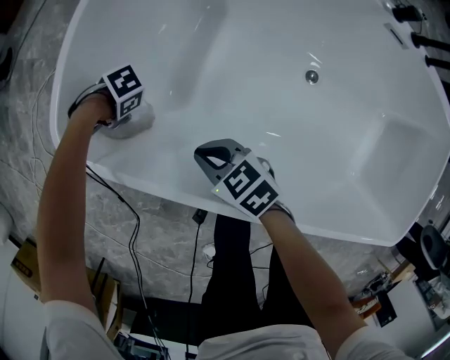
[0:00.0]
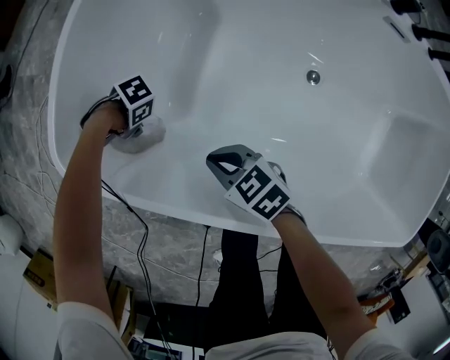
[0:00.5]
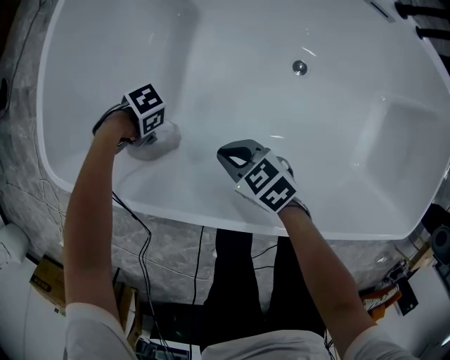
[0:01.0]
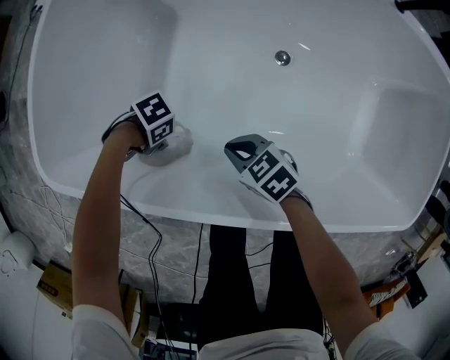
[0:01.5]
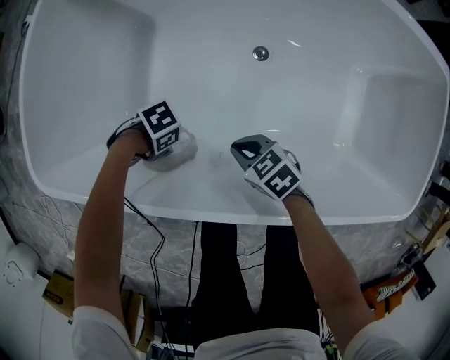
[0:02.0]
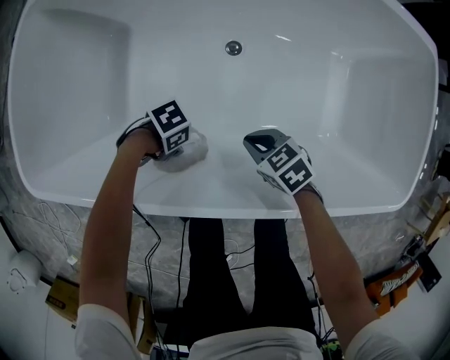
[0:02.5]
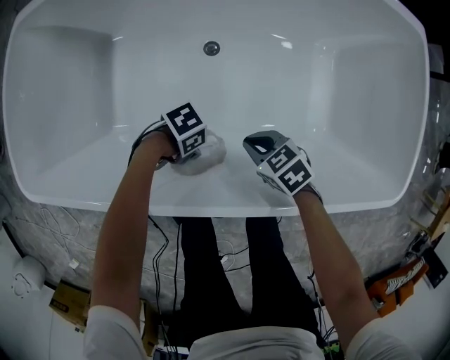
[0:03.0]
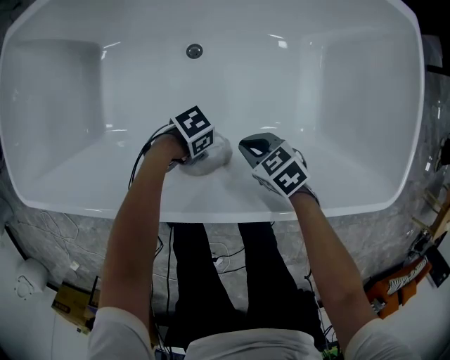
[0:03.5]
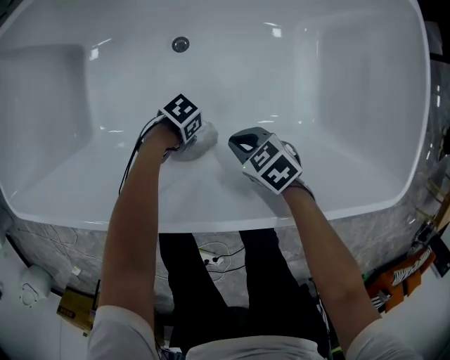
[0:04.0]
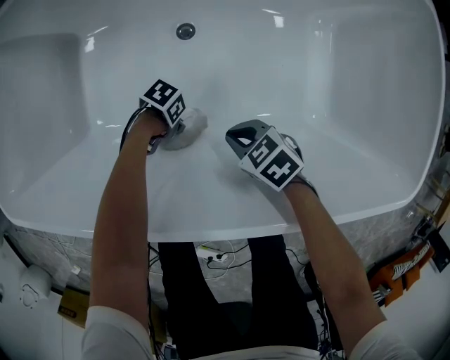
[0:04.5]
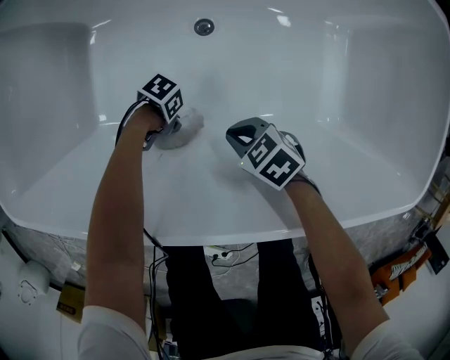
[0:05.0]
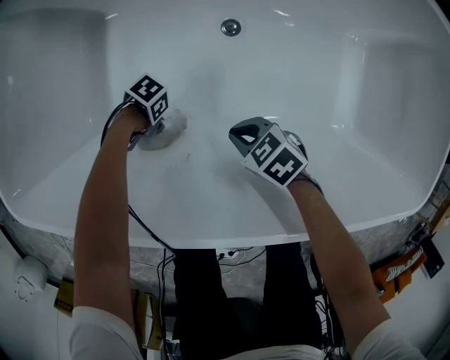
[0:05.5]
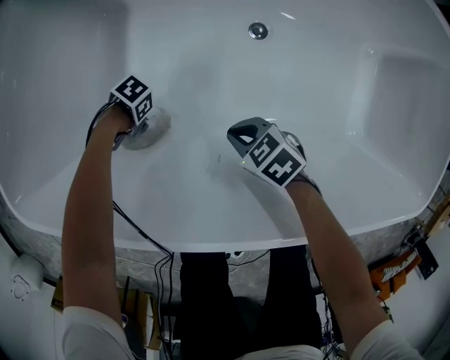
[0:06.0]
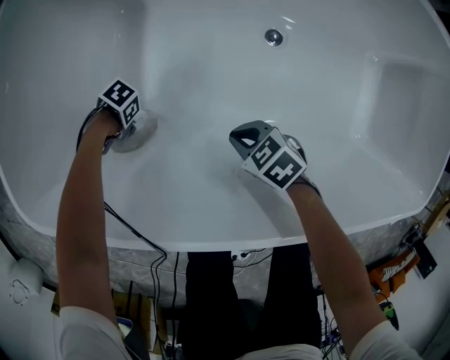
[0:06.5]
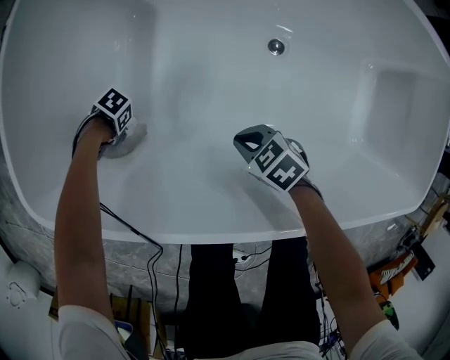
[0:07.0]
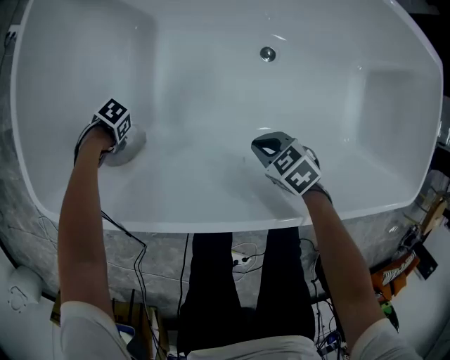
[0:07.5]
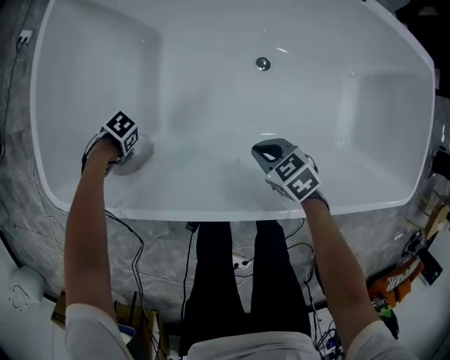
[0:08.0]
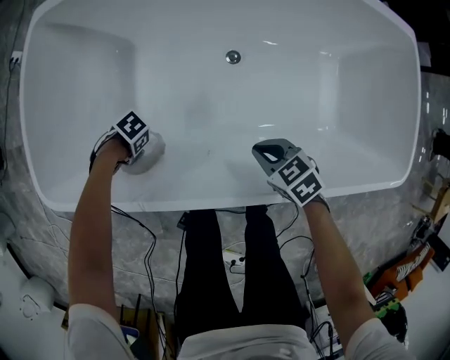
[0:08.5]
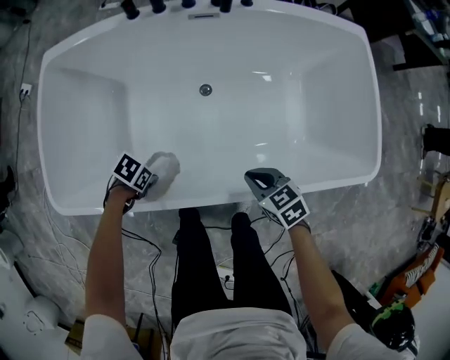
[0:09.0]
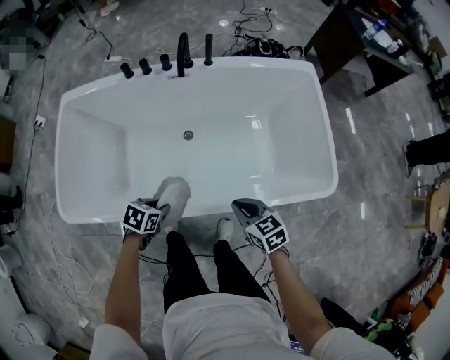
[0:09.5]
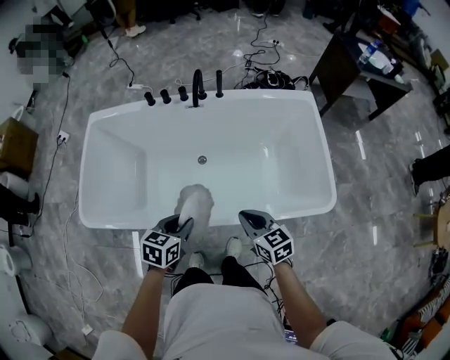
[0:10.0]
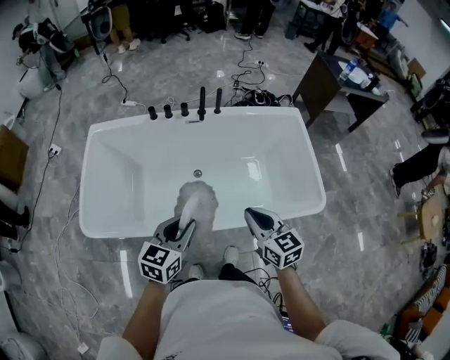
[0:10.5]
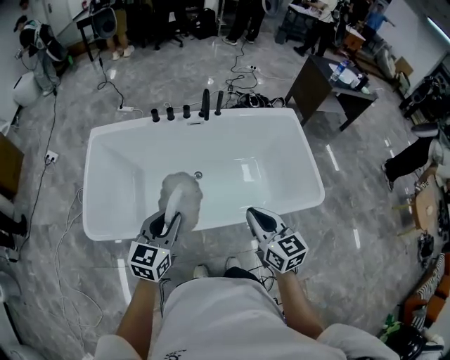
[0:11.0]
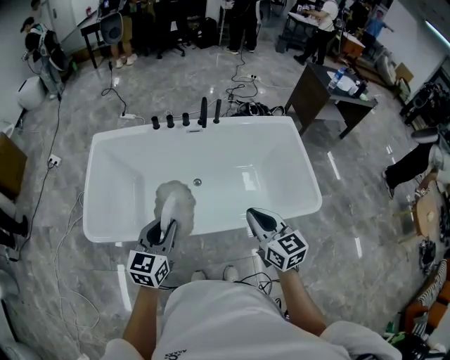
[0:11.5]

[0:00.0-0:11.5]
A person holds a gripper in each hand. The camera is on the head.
0:00.0 to 0:02.0: The right gripper moves roughly 25 cm.
0:02.0 to 0:04.0: The right gripper shifts by roughly 25 cm.
0:04.0 to 0:06.0: The right gripper changes place by approximately 25 cm.
0:06.0 to 0:07.5: The right gripper goes some 5 cm upward.
0:07.5 to 0:09.5: The right gripper shifts approximately 30 cm upward, and turns by approximately 40 degrees.
0:09.5 to 0:11.5: The right gripper is displaced upward by approximately 25 cm, and turns by some 30 degrees.

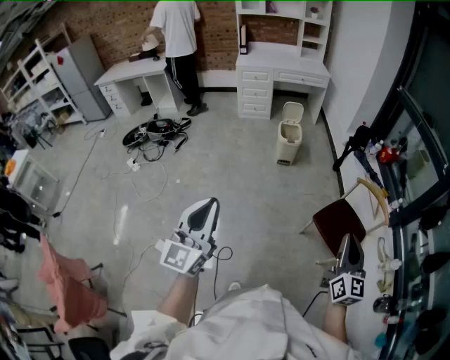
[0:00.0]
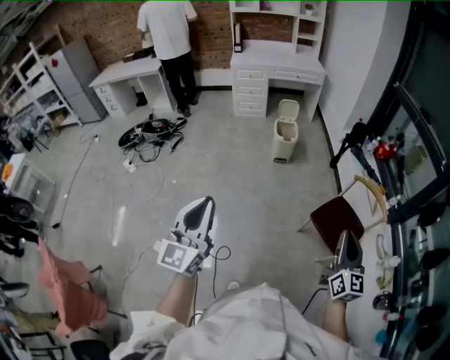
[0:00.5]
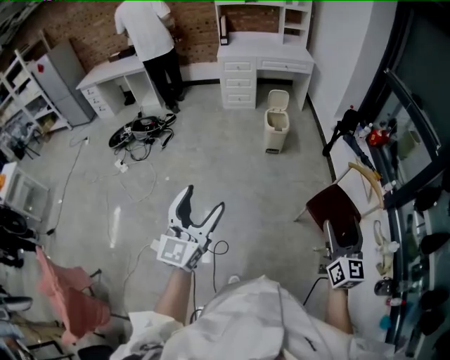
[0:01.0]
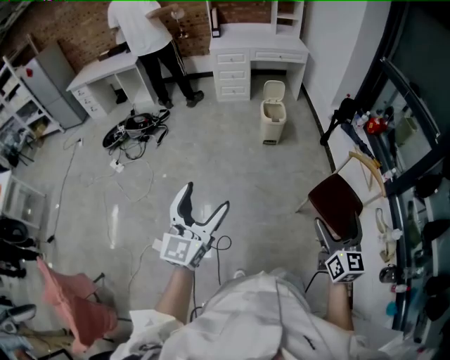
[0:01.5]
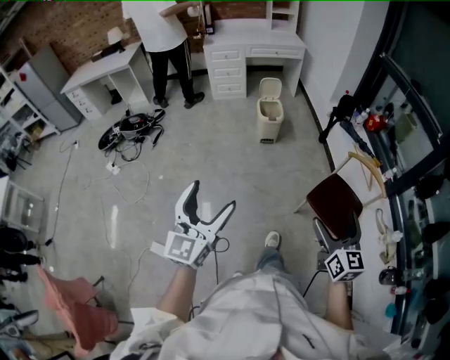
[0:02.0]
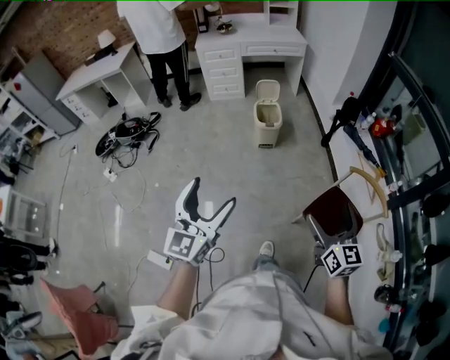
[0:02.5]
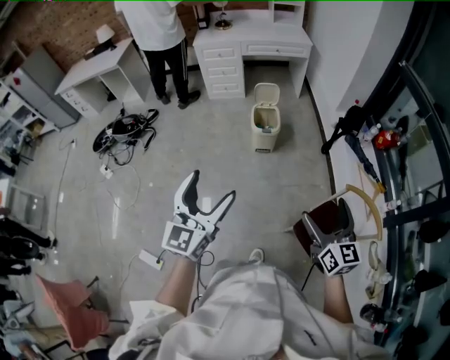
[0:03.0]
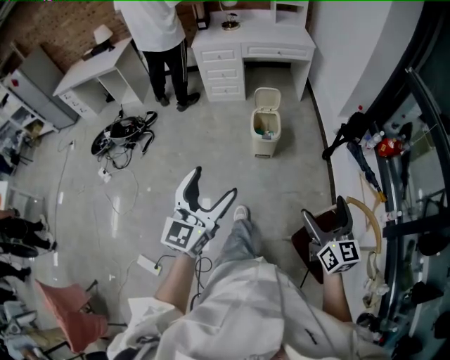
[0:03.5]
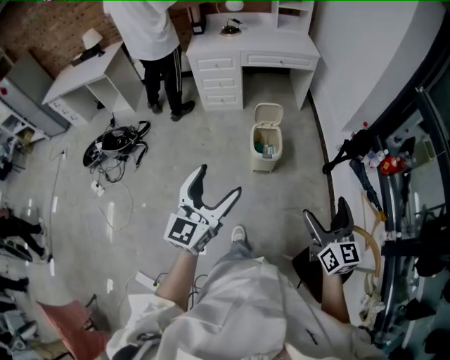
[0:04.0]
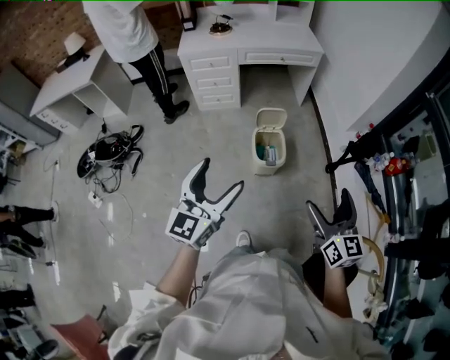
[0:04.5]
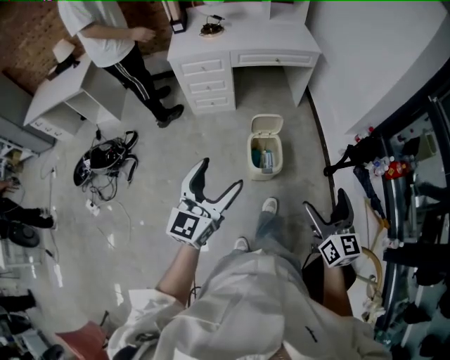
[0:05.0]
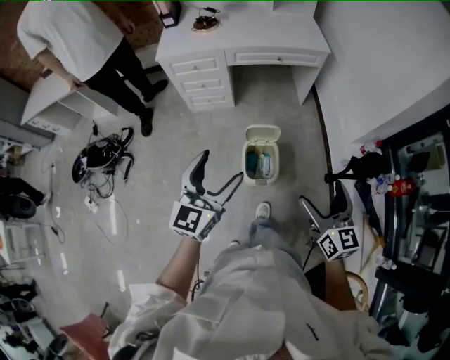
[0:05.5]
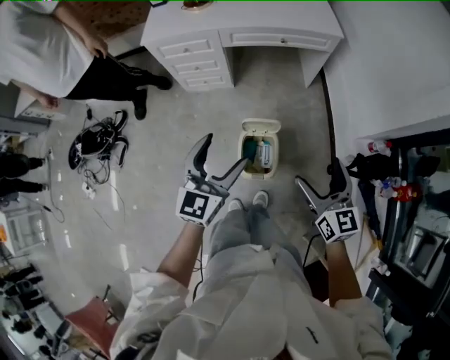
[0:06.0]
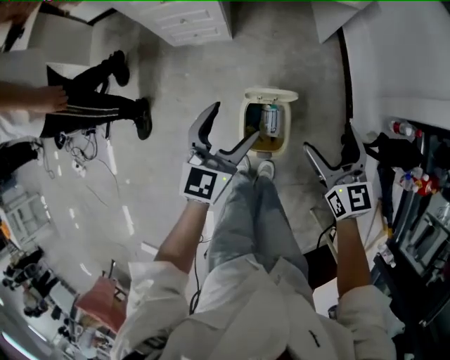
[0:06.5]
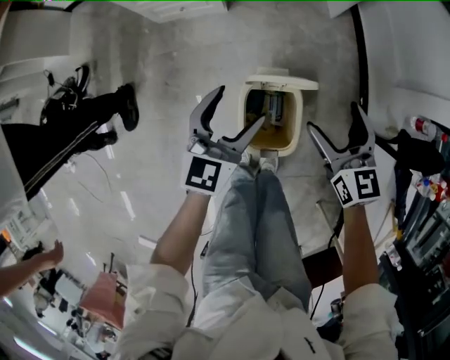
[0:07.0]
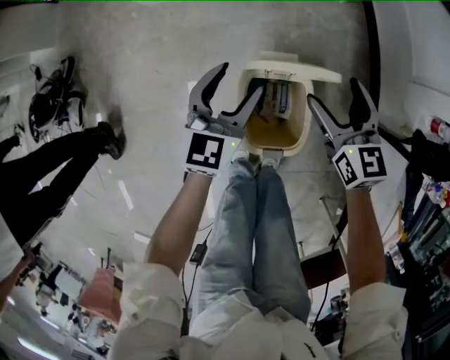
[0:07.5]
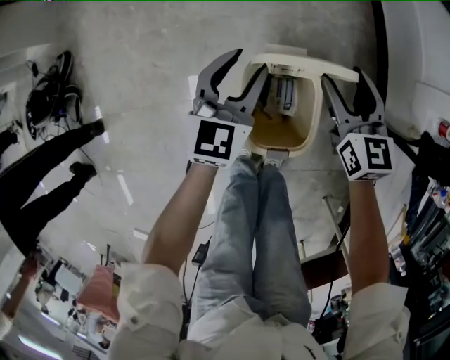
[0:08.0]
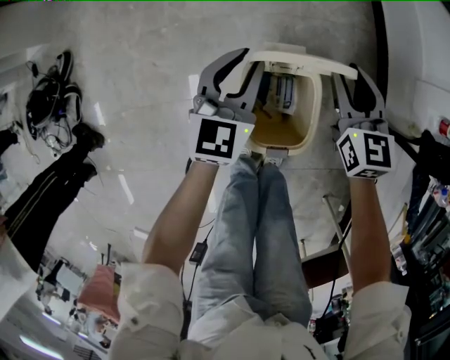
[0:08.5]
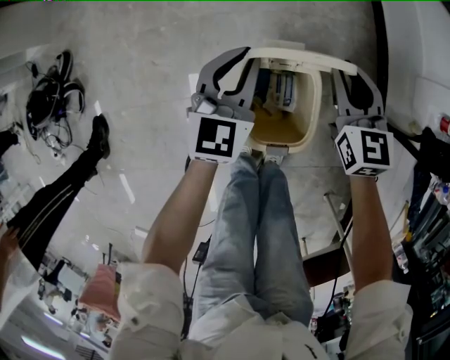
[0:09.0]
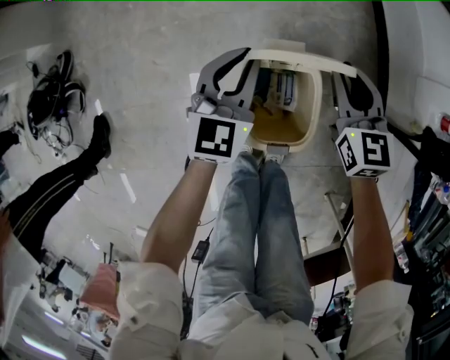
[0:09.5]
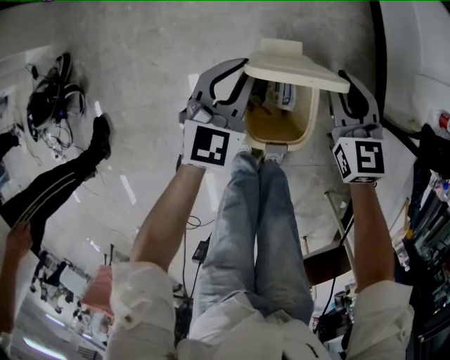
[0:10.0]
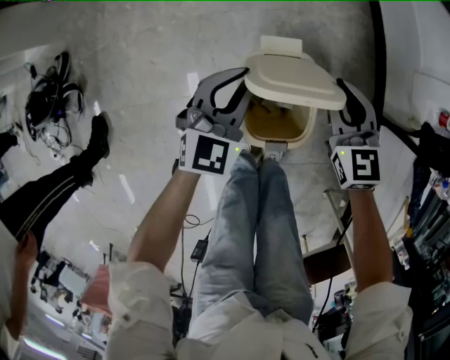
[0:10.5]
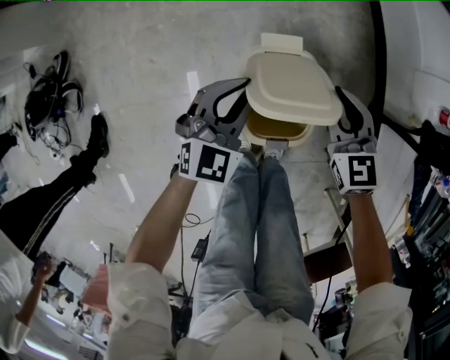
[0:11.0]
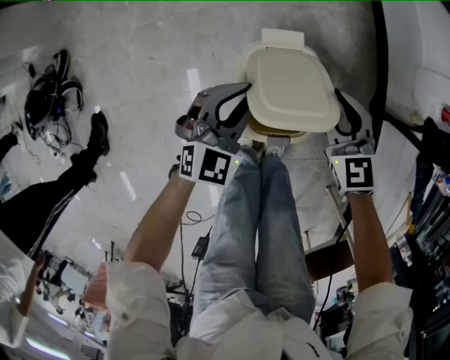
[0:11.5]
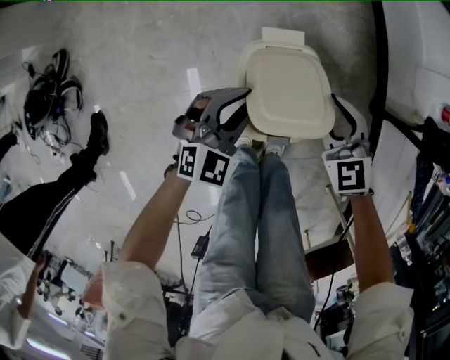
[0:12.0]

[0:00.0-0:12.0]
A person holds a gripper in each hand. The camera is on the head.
0:00.0 to 0:02.0: The left gripper shifts some 10 cm forward, and opens its fingers; the right gripper is displaced forward, to the left and downward by roughly 10 cm, and opens.
0:02.0 to 0:04.0: Both grippers are carried forward, about 60 cm.
0:04.0 to 0:06.0: The two grippers travel together, forward, about 60 cm.
0:06.0 to 0:08.0: The left gripper goes about 50 cm downward, and closes up. The right gripper travels downward and forward by approximately 50 cm, and closes its fingers.
0:08.0 to 0:10.0: The right gripper closes up.
0:10.0 to 0:12.0: The grippers both shift backward by approximately 10 cm. The left gripper swivels some 20 degrees.

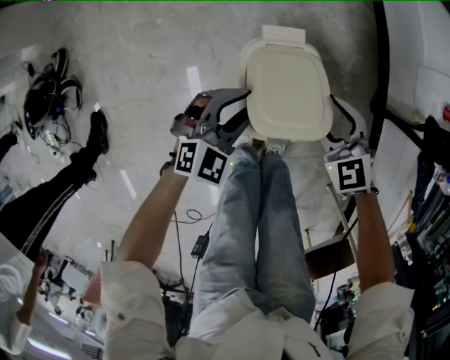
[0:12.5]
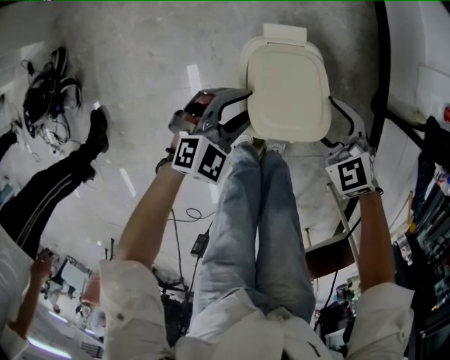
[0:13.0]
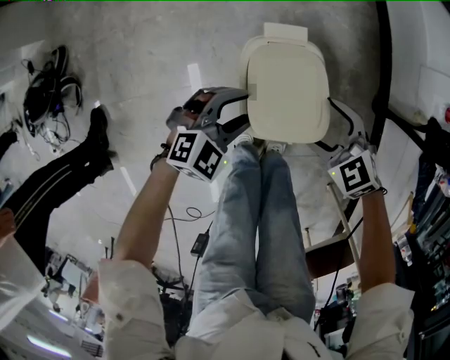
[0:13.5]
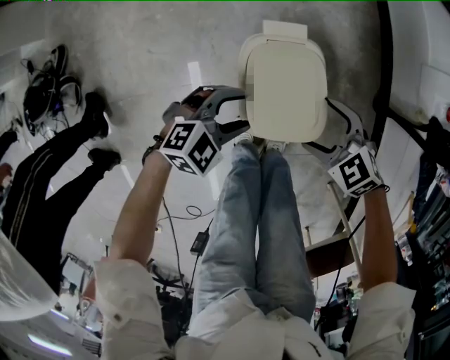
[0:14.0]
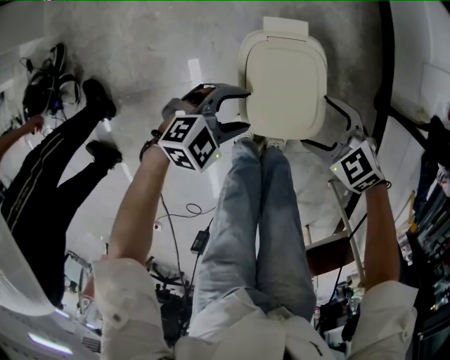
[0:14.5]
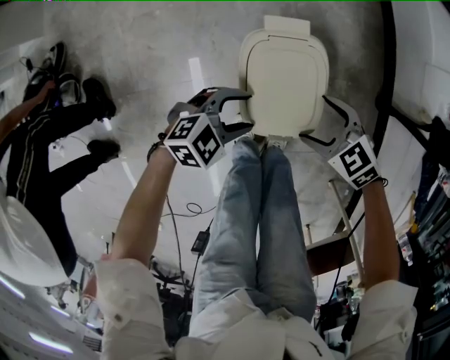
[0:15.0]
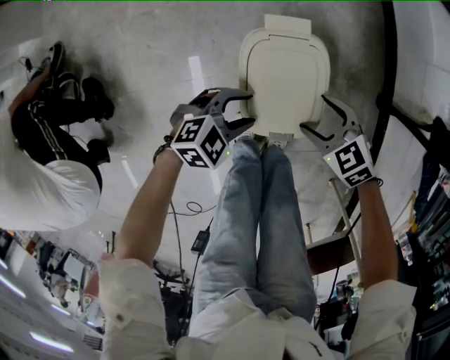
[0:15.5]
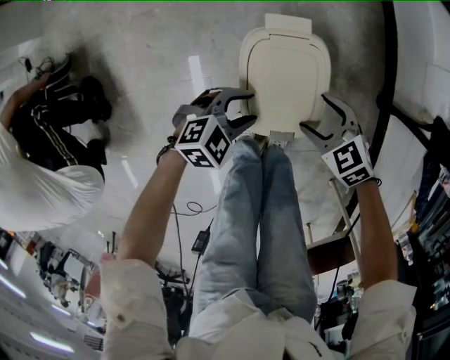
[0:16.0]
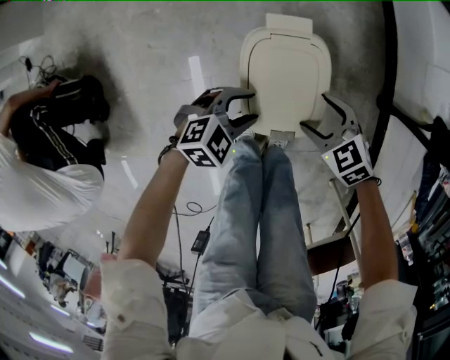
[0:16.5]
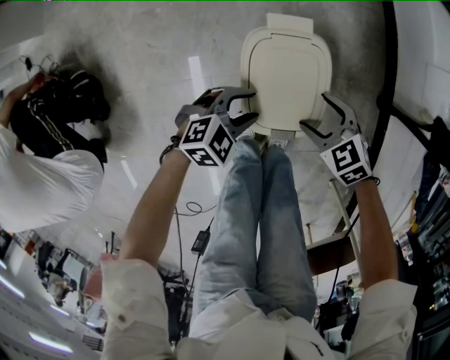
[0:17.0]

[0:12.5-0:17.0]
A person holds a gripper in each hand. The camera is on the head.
0:12.5 to 0:14.5: The right gripper shifts by approximately 5 cm, swivels approximately 30 degrees, and opens. Meanwhile the left gripper ends up approximately 5 cm from where it was, and turns by approximately 30 degrees.
0:14.5 to 0:17.0: There are only small adjustments of the grippers.
